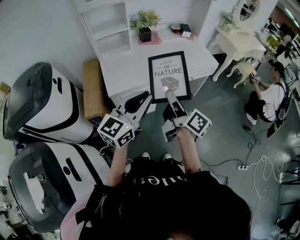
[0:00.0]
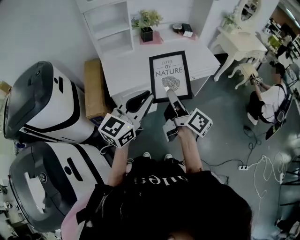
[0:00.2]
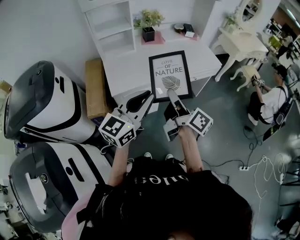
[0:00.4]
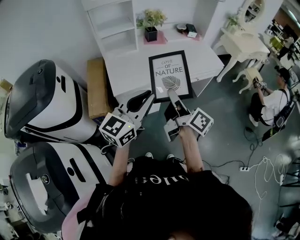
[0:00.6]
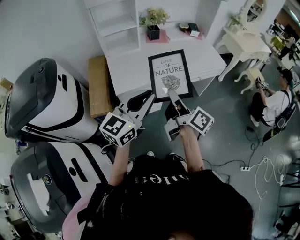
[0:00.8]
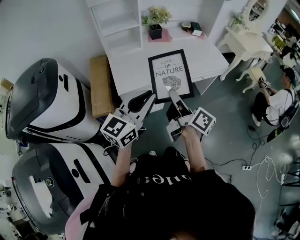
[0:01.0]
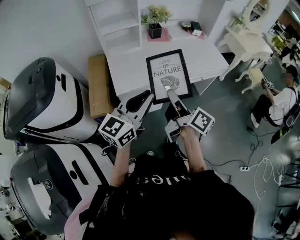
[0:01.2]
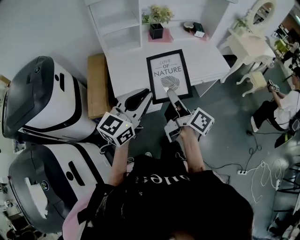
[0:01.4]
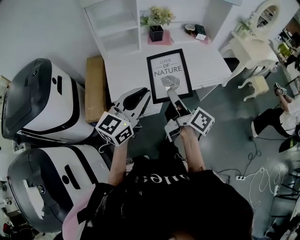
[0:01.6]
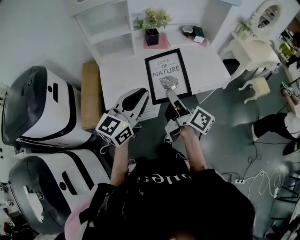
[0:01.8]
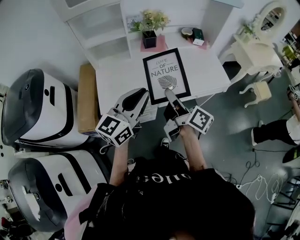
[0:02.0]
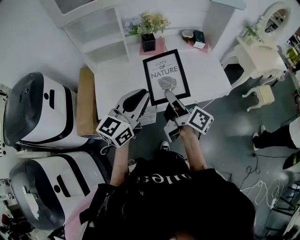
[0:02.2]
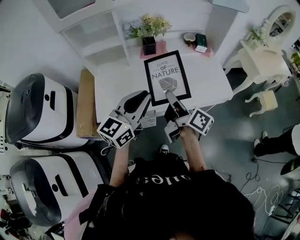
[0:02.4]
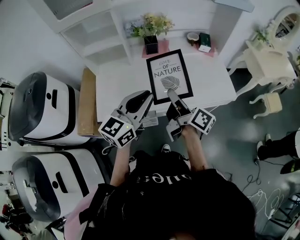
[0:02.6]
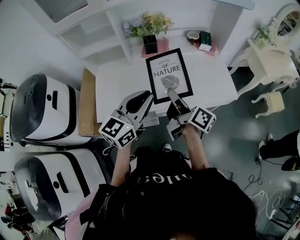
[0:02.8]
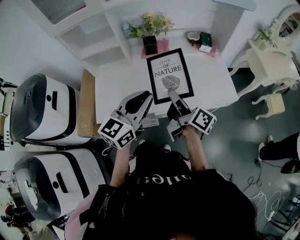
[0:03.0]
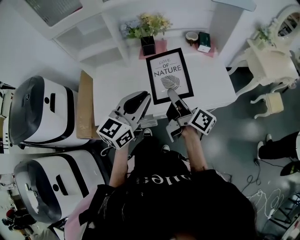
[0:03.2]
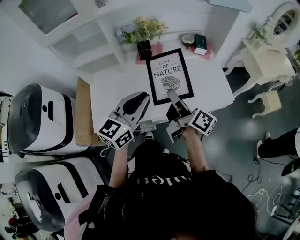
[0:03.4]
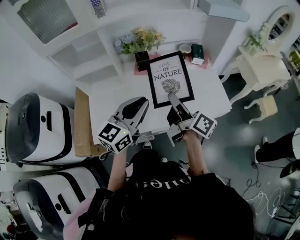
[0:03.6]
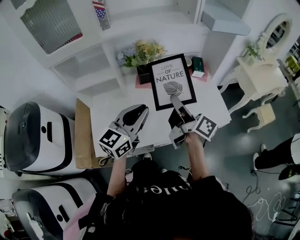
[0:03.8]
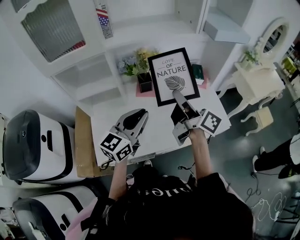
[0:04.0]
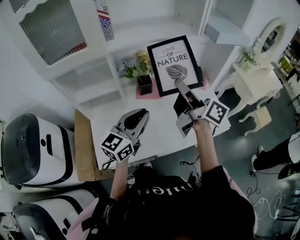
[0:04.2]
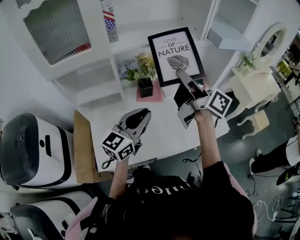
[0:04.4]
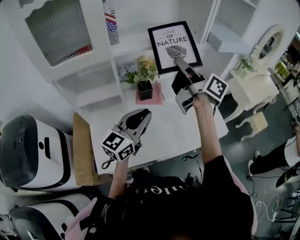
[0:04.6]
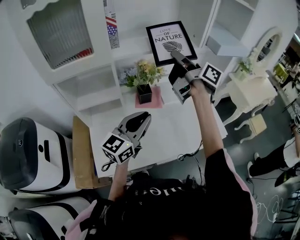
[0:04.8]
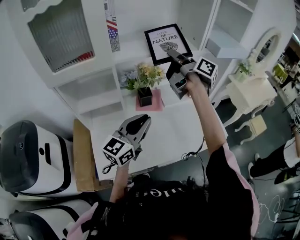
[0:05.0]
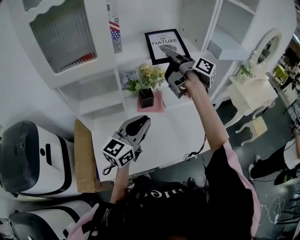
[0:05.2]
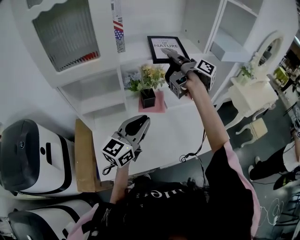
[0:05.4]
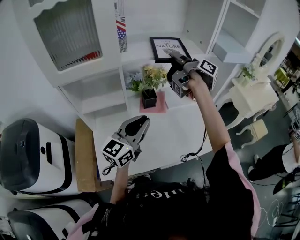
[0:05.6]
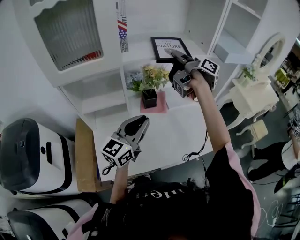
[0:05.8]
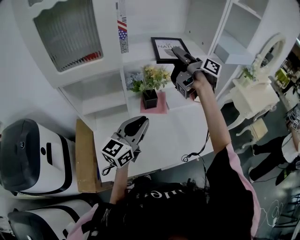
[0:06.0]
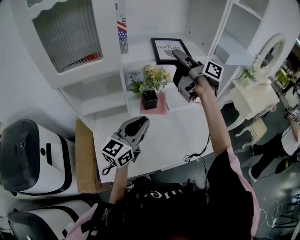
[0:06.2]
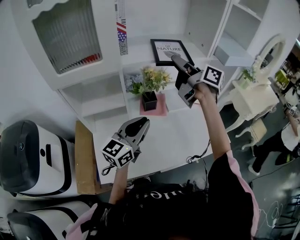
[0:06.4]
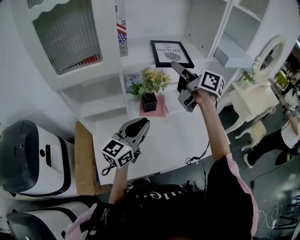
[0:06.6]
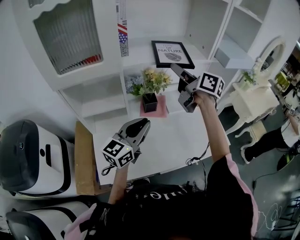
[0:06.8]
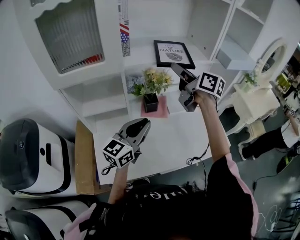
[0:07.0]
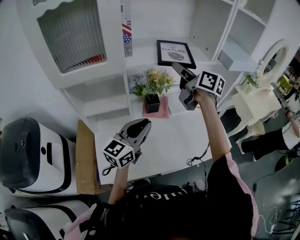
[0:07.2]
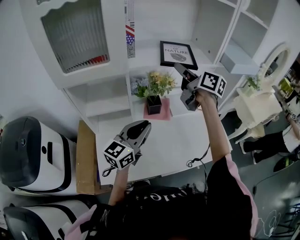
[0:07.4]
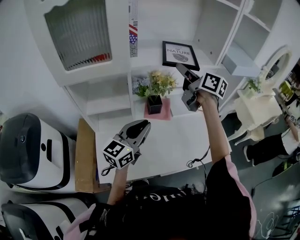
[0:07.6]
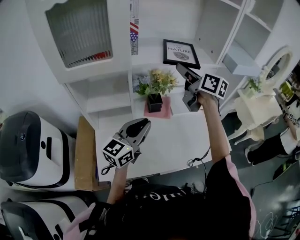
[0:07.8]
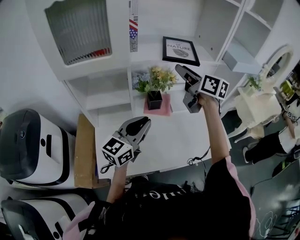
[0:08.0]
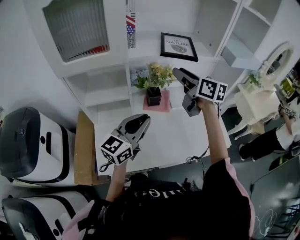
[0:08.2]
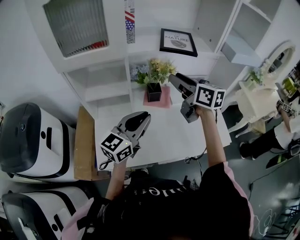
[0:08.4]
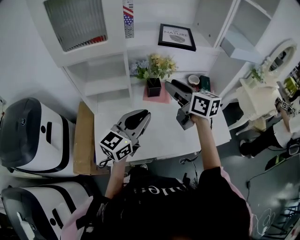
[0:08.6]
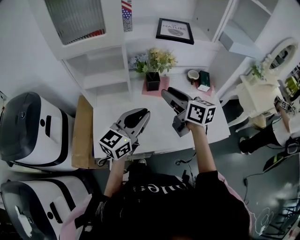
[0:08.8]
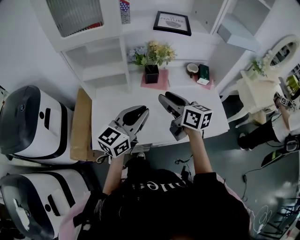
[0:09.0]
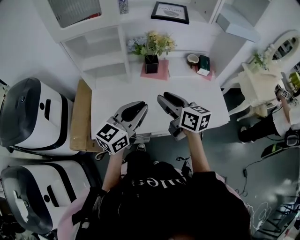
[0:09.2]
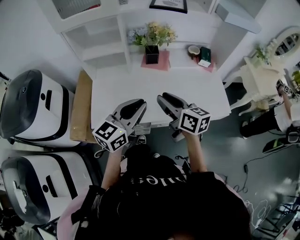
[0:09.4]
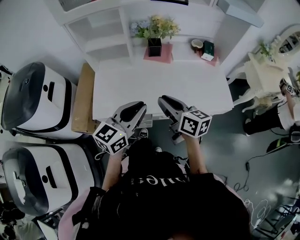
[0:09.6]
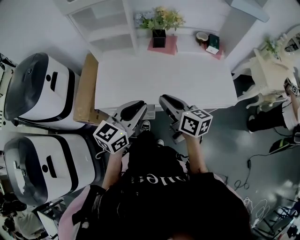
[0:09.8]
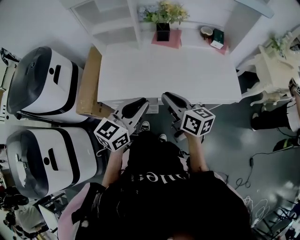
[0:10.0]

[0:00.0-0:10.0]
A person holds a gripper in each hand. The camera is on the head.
0:00.0 to 0:01.4: Both grippers travel together forward and to the left, roughly 10 cm.
0:01.4 to 0:02.8: The two grippers go some 30 cm forward and to the right.
0:02.8 to 0:04.2: The left gripper travels forward and to the left by approximately 15 cm; the right gripper shifts roughly 25 cm forward and upward.
0:04.2 to 0:05.8: The left gripper travels to the left by approximately 5 cm. The right gripper goes roughly 20 cm forward and to the left, and changes its angle by about 20 degrees.
0:05.8 to 0:07.2: The right gripper turns by roughly 40 degrees, and opens.
0:07.2 to 0:08.6: The right gripper travels backward and downward by about 15 cm; the left gripper moves backward, about 5 cm.
0:08.6 to 0:10.0: The right gripper travels backward and downward by about 35 cm, and closes its fingers; the left gripper is displaced backward by about 25 cm.

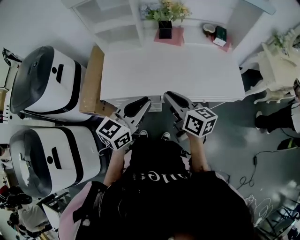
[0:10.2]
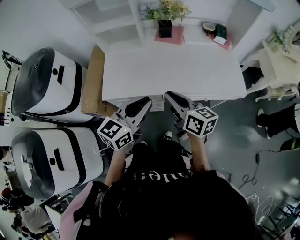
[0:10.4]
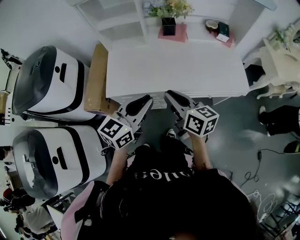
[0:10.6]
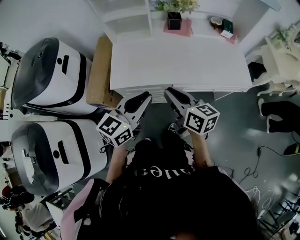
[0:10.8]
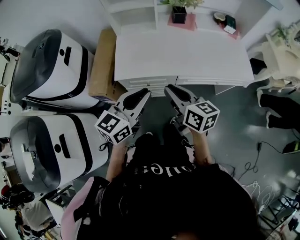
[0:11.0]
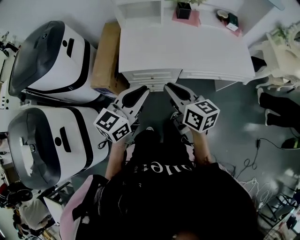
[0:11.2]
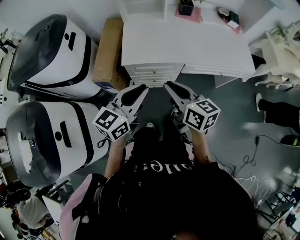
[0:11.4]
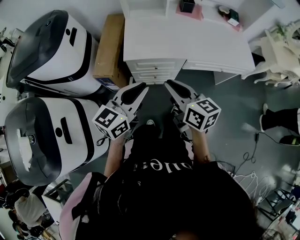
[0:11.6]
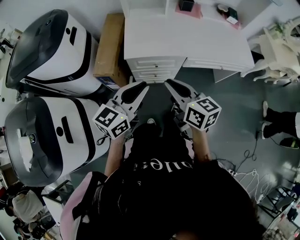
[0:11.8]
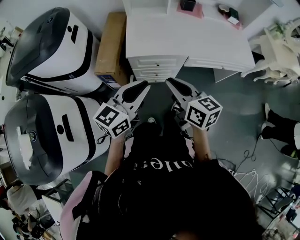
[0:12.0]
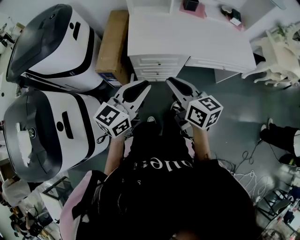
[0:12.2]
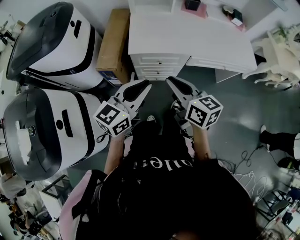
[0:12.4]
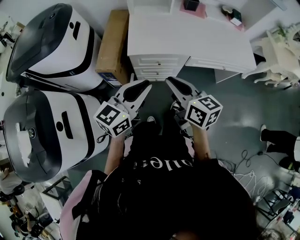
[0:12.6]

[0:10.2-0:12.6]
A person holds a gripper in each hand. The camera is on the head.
0:10.2 to 0:11.4: Both grippers travel together to the left and backward, about 25 cm.
0:11.4 to 0:12.6: The right gripper changes place by some 5 cm, while the left gripper moves approximately 5 cm.

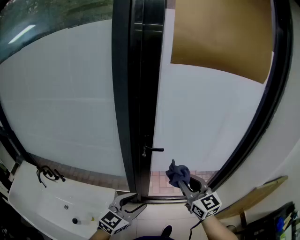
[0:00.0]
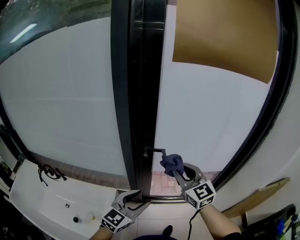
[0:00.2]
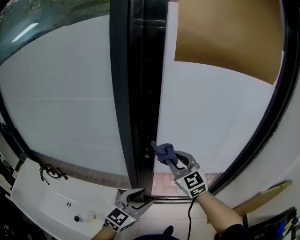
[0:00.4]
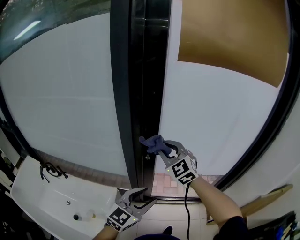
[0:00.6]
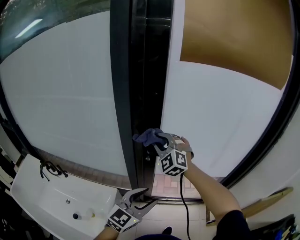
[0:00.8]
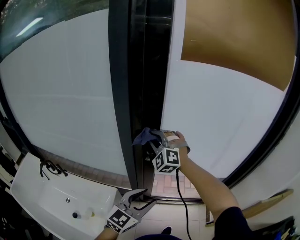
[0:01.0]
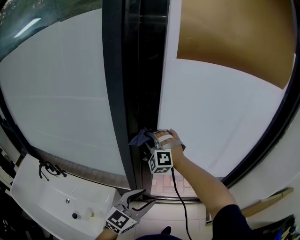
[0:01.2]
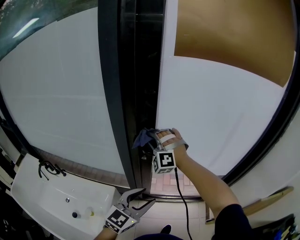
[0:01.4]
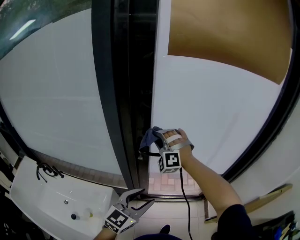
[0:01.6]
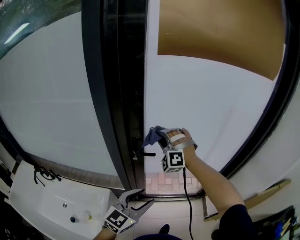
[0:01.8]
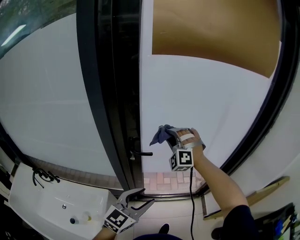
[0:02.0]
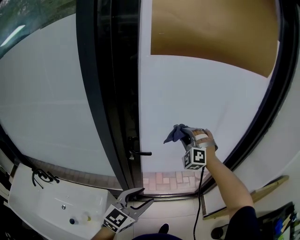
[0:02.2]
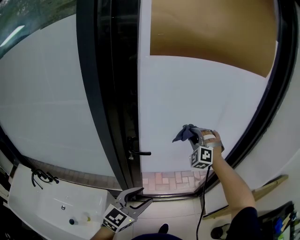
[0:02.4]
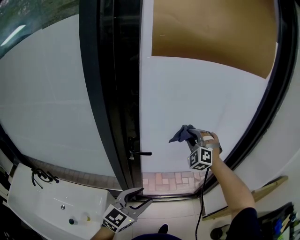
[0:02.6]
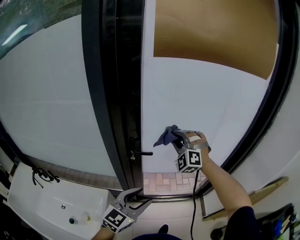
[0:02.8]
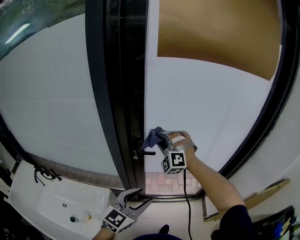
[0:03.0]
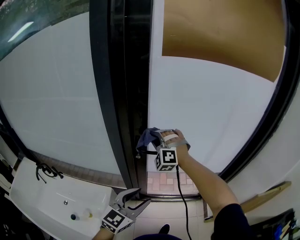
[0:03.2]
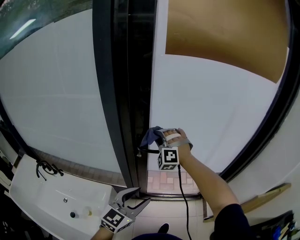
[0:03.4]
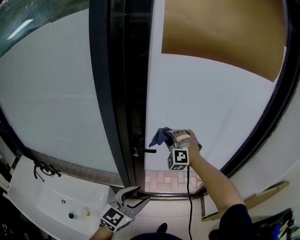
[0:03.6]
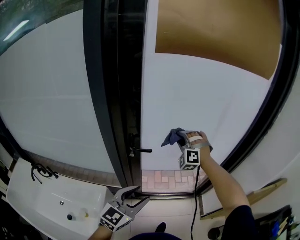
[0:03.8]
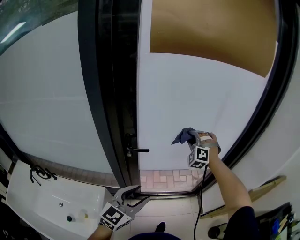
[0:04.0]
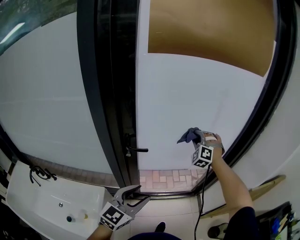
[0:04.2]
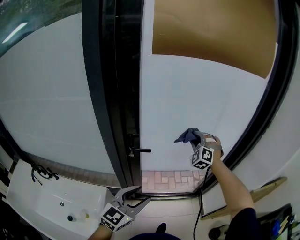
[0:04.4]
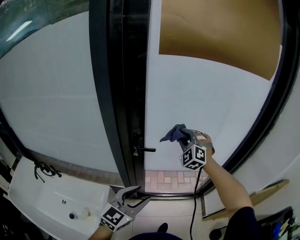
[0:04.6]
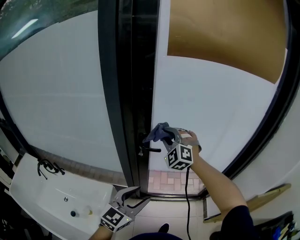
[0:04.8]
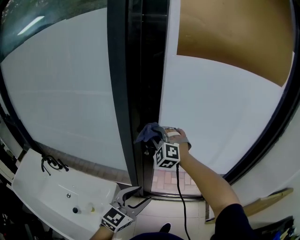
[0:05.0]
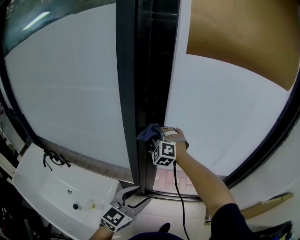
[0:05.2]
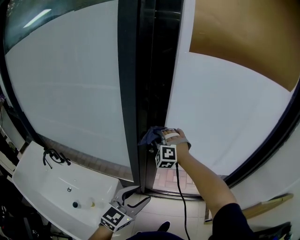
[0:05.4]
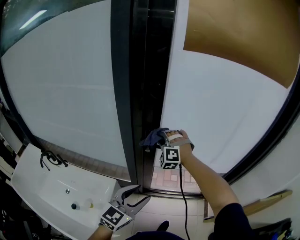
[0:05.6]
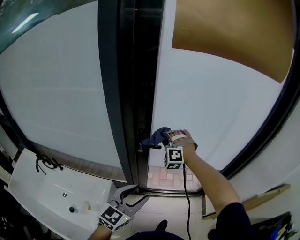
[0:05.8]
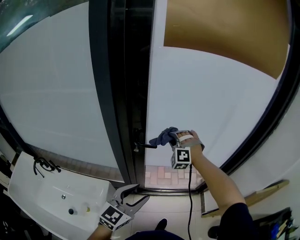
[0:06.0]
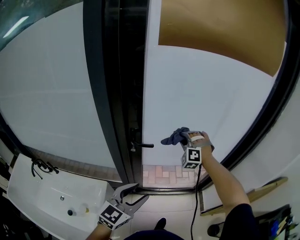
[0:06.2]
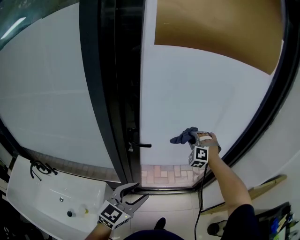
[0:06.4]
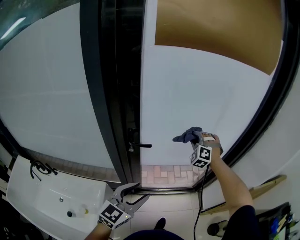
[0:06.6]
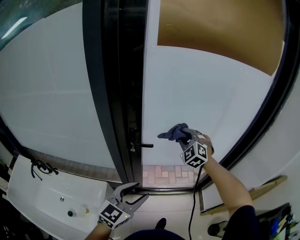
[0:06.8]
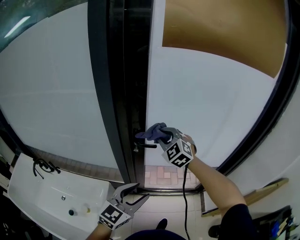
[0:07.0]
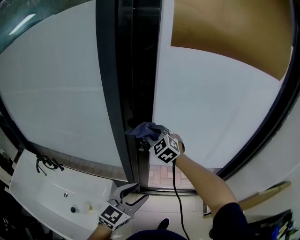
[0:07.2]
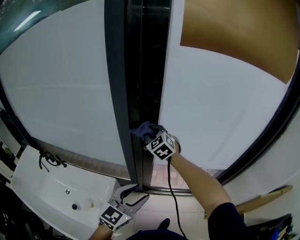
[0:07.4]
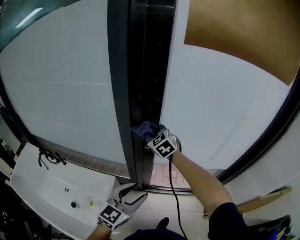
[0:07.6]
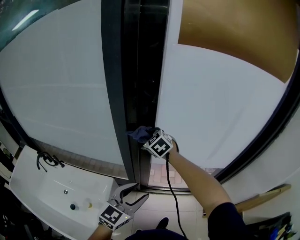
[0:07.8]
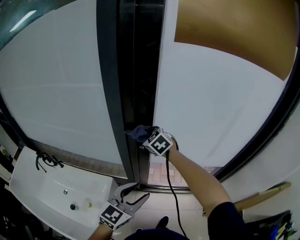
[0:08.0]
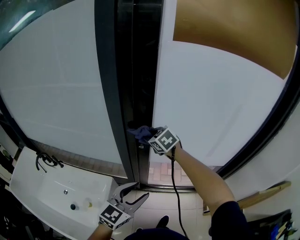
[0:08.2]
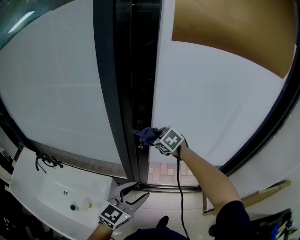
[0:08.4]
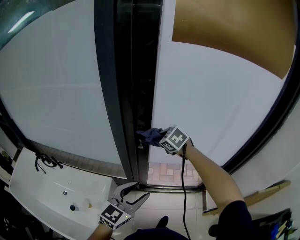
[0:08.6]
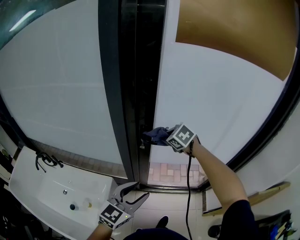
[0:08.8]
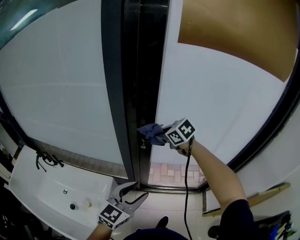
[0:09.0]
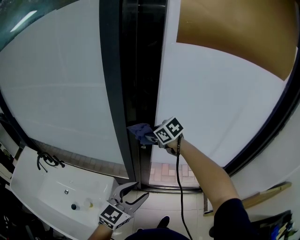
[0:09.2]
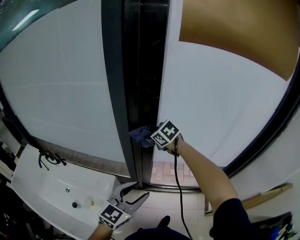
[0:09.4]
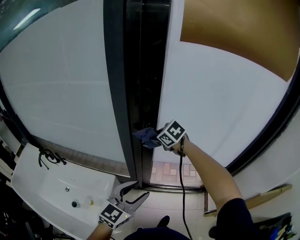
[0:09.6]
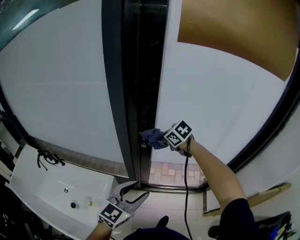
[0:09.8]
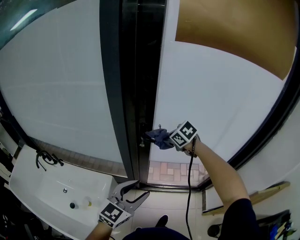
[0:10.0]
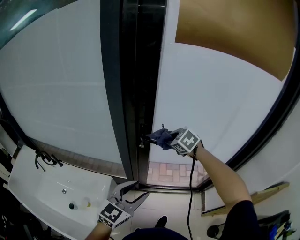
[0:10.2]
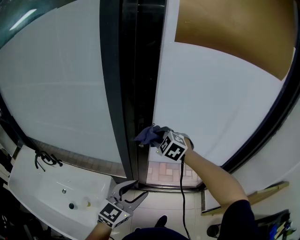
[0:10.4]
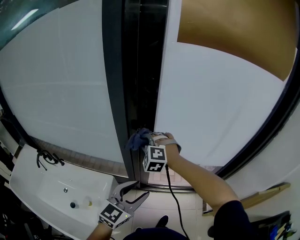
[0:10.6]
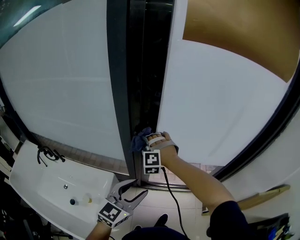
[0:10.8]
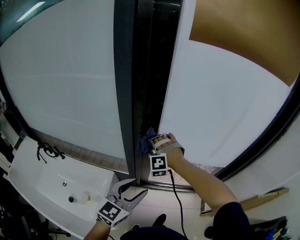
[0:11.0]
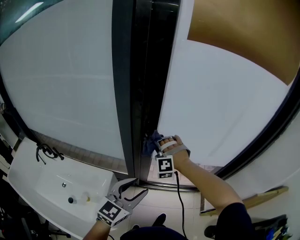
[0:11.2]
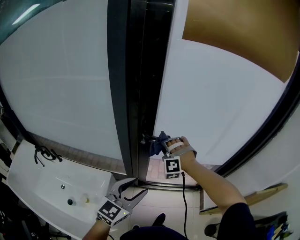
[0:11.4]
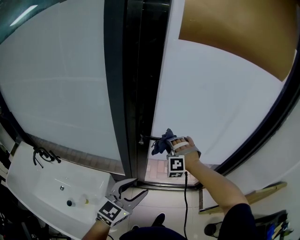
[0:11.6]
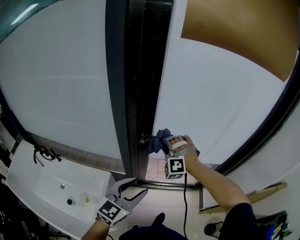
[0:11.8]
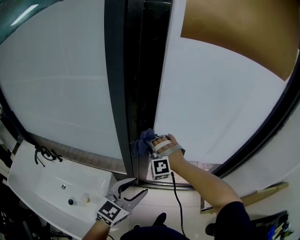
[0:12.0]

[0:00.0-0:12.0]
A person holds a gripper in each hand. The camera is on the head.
0:00.0 to 0:01.6: The left gripper heads forward and to the right, covering some 10 cm. The right gripper is displaced forward and to the left by approximately 30 cm, and twists approximately 80 degrees counterclockwise, seen from behind.
0:01.6 to 0:03.0: The right gripper moves roughly 20 cm to the right and comes back.
0:03.0 to 0:04.4: The right gripper travels to the right and forward by some 20 cm, and turns by about 20 degrees.
0:04.4 to 0:06.0: The right gripper heads to the left, covering approximately 15 cm, and changes its angle by some 20 degrees.
0:06.0 to 0:07.6: The right gripper travels to the left by about 15 cm, and rotates around the line of its fingers by about 50 degrees, clockwise from behind.
0:07.6 to 0:09.0: The right gripper heads to the right, covering some 5 cm, and changes its angle by some 30 degrees.
0:09.0 to 0:10.4: The right gripper swings left and right, roughly 10 cm each way, with 2 reversals, and swivels approximately 30 degrees.
0:10.4 to 0:12.0: The right gripper goes left and right, approximately 15 cm each way, reversing 2 times, and rotates around the line of its fingers by some 40 degrees, counterclockwise from behind.
